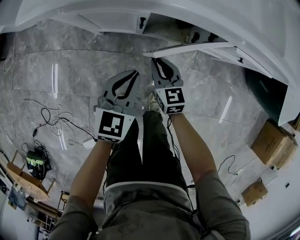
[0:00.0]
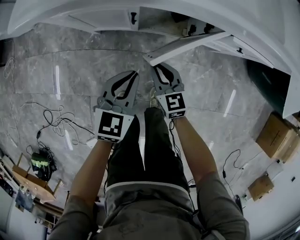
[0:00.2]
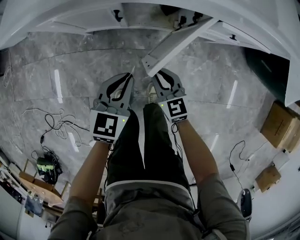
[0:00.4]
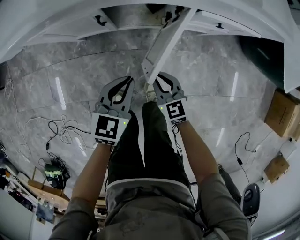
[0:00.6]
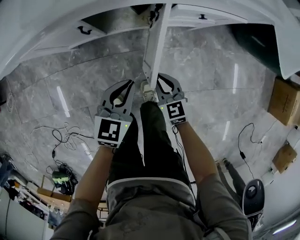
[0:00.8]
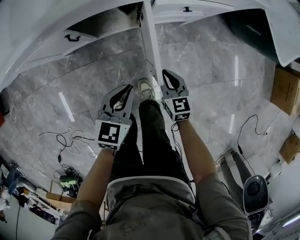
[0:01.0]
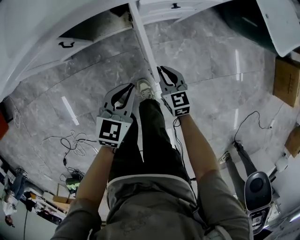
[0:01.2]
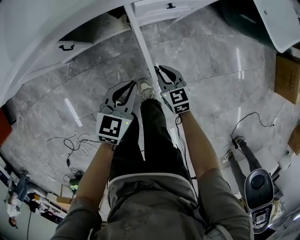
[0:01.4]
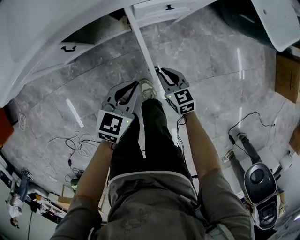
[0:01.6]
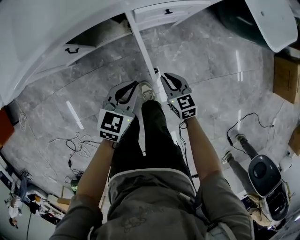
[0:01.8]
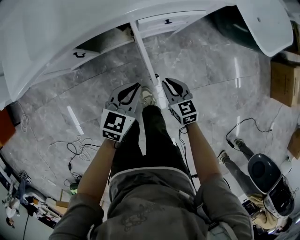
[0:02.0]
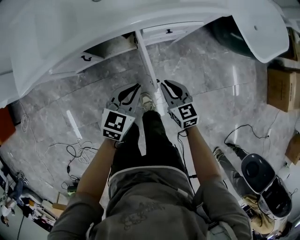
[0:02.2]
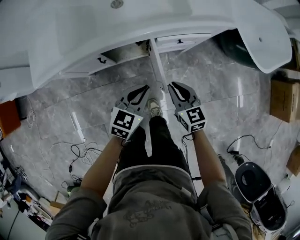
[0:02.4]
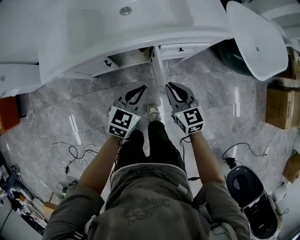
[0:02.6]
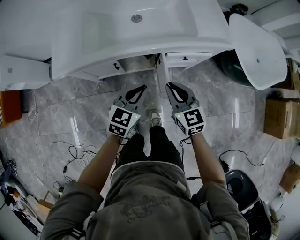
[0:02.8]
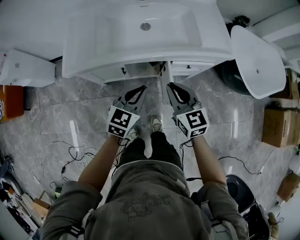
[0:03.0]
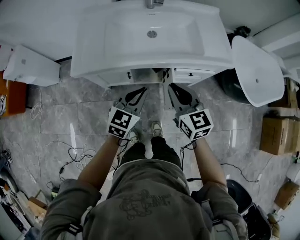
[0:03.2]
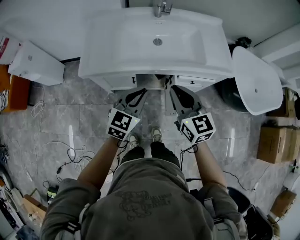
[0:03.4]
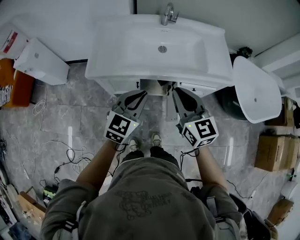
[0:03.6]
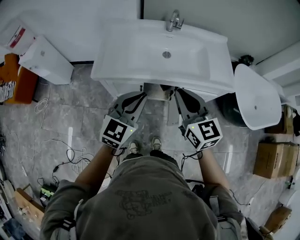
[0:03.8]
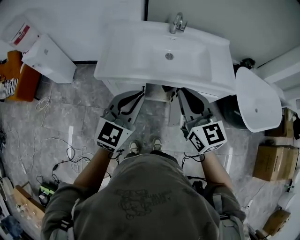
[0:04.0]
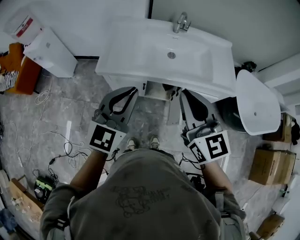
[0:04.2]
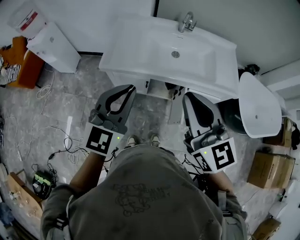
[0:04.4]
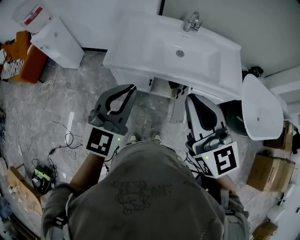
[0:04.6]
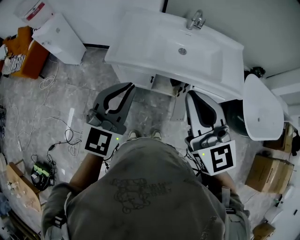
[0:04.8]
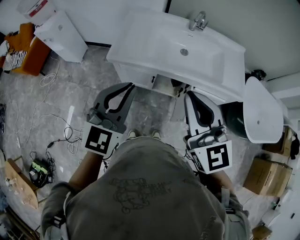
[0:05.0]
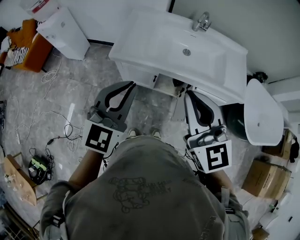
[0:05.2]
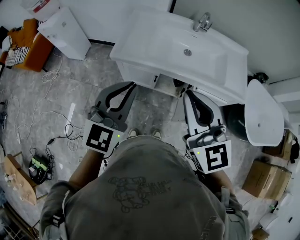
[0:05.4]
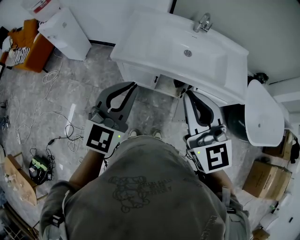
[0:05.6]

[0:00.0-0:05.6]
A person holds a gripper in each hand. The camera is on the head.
0:00.0 to 0:01.4: Both grippers travel together to the right, roughly 25 cm. The left gripper rotates about 30 degrees.
0:01.4 to 0:02.8: The right gripper moves upward, about 35 cm. The left gripper moves upward, some 20 cm.
0:02.8 to 0:04.2: The right gripper shifts some 30 cm upward, and turns by some 20 degrees; the left gripper goes approximately 35 cm upward and to the left, and rotates about 30 degrees.
0:04.2 to 0:05.6: The left gripper ends up about 5 cm from where it was. The right gripper heads to the left, covering roughly 5 cm.

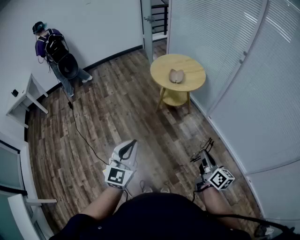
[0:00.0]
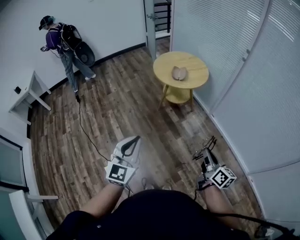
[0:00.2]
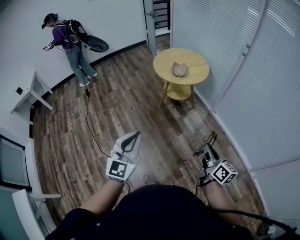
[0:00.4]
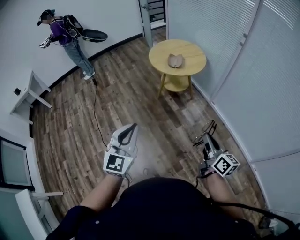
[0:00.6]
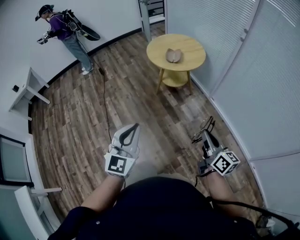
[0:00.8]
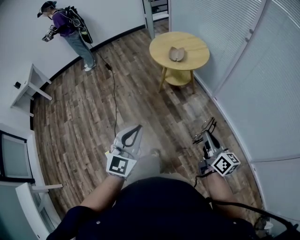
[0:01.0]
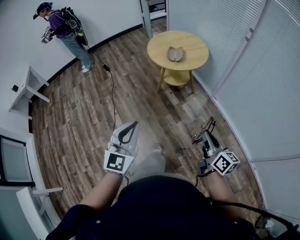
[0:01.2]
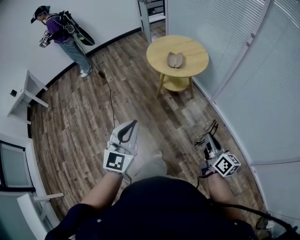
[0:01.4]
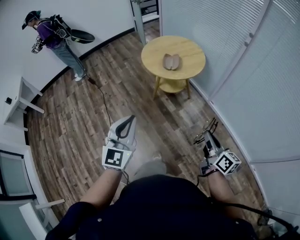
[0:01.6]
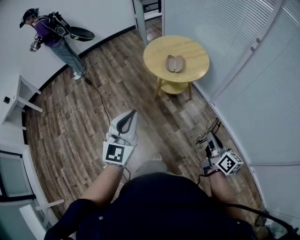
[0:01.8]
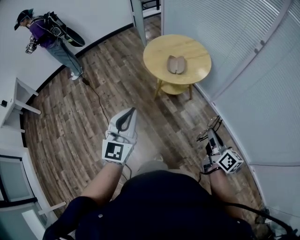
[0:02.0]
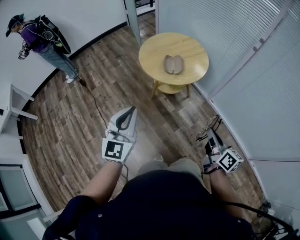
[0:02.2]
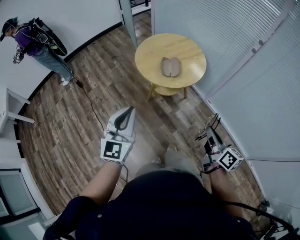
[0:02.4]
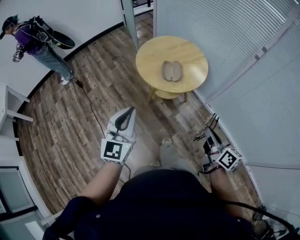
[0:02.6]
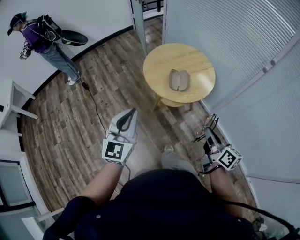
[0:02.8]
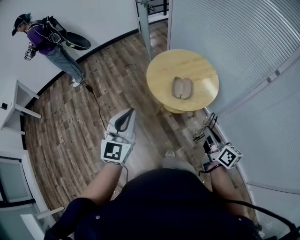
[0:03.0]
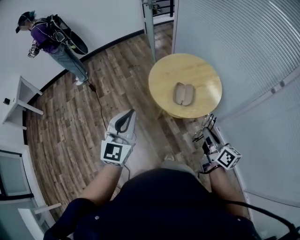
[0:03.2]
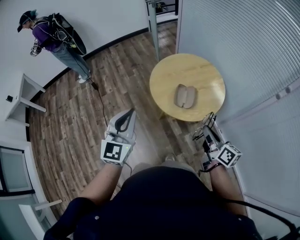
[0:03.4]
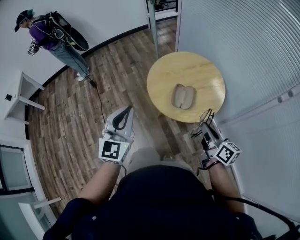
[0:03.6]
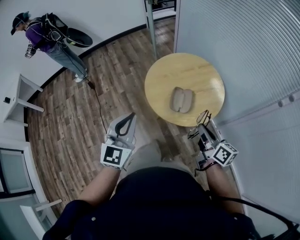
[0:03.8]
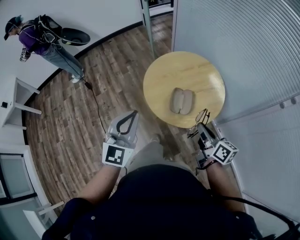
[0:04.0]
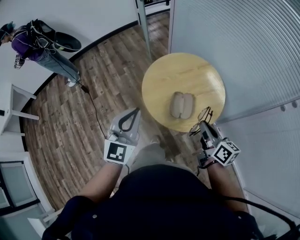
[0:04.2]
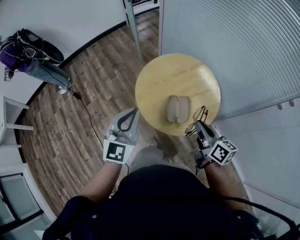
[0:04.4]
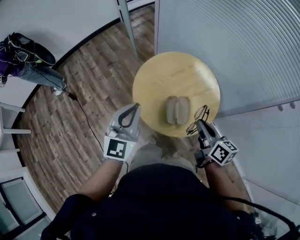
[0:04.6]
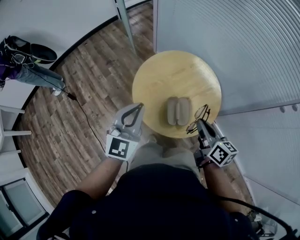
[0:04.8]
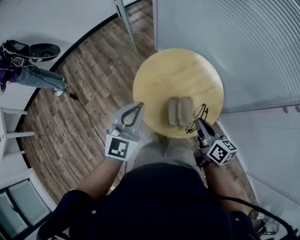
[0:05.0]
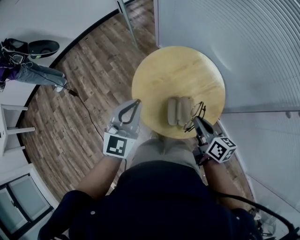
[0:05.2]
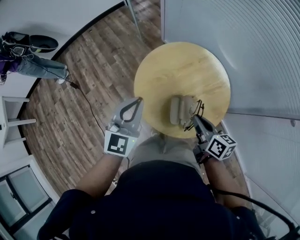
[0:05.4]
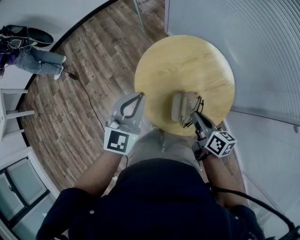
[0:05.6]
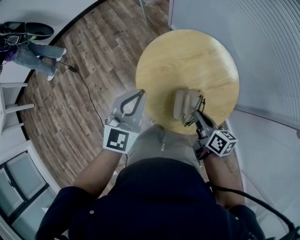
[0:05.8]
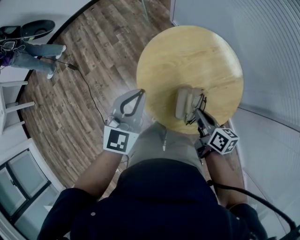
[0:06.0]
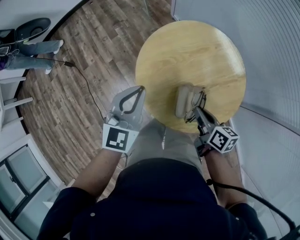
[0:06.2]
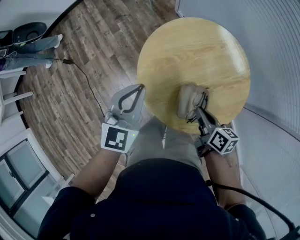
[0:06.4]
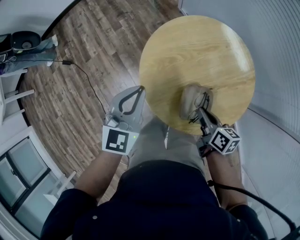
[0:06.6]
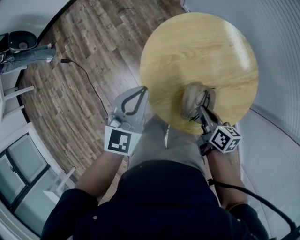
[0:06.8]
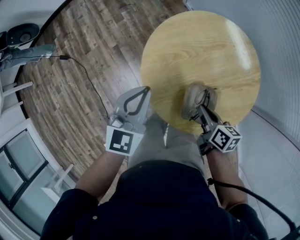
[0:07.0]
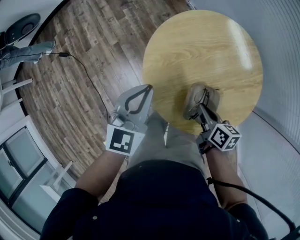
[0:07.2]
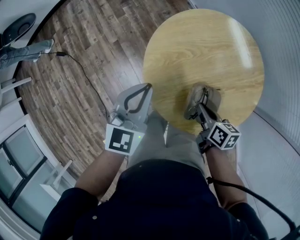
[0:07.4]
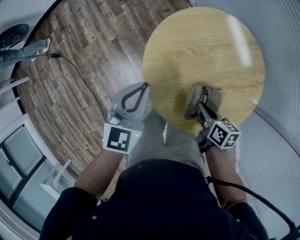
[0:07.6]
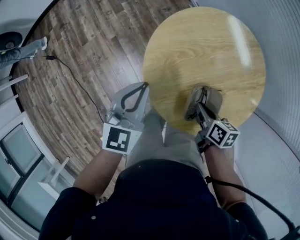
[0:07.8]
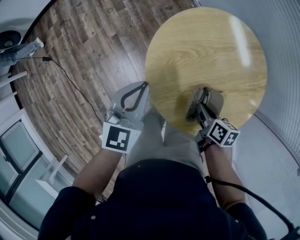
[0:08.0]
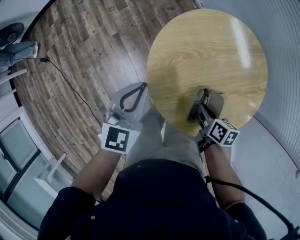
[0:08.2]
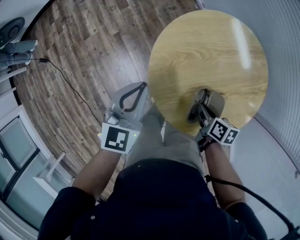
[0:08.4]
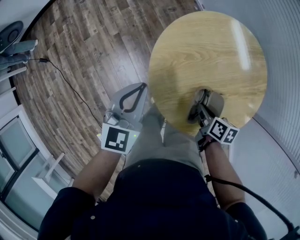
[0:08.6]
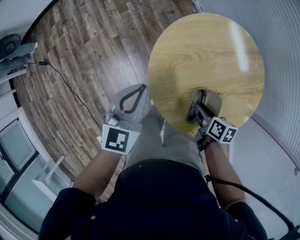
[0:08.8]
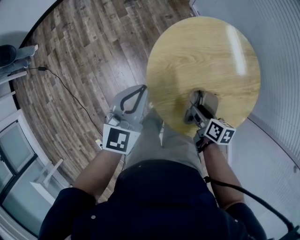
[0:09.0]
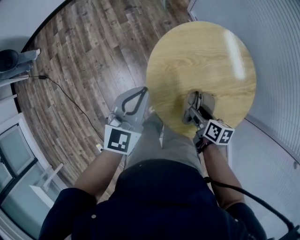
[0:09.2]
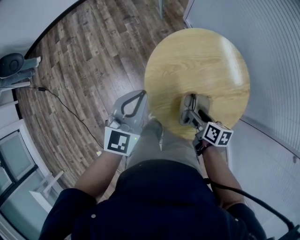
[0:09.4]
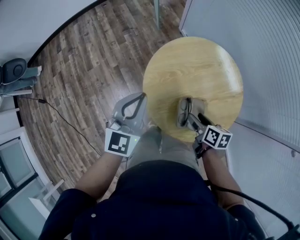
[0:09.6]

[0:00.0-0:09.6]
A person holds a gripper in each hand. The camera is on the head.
0:00.0 to 0:01.6: The grippers both shift forward by about 15 cm.
0:01.6 to 0:03.2: The two grippers go roughly 35 cm forward.
0:03.2 to 0:04.8: Both grippers travel together forward, roughly 25 cm.
0:04.8 to 0:06.4: The two grippers go some 20 cm downward and forward. The right gripper swivels approximately 20 degrees.
0:06.4 to 0:08.0: Both grippers travel together downward, roughly 10 cm.
0:08.0 to 0:09.6: Both grippers travel together upward, about 10 cm. The right gripper opens up.

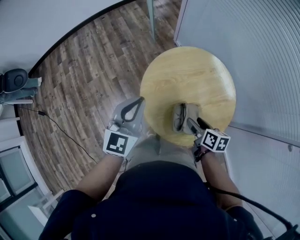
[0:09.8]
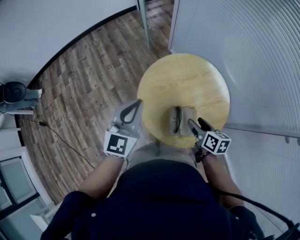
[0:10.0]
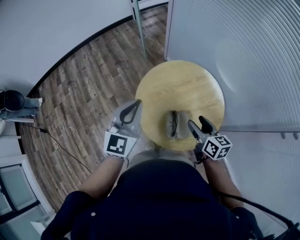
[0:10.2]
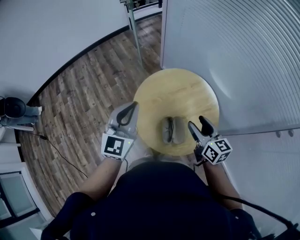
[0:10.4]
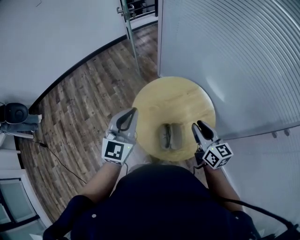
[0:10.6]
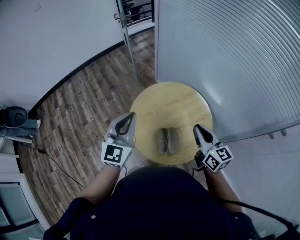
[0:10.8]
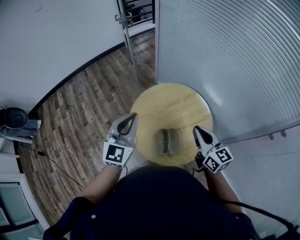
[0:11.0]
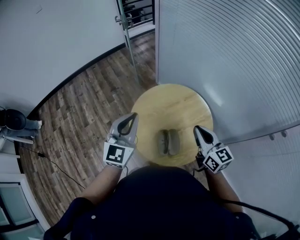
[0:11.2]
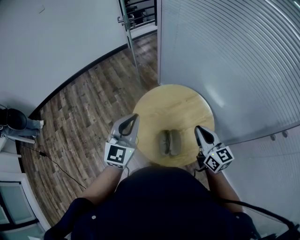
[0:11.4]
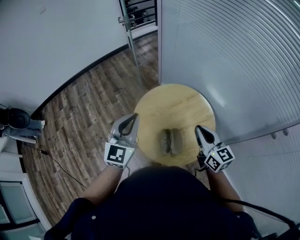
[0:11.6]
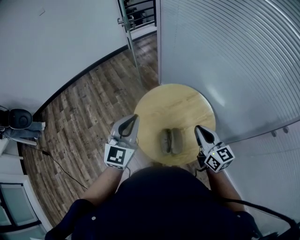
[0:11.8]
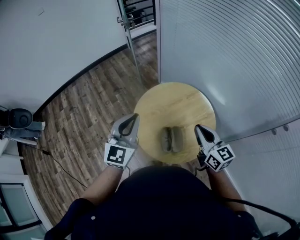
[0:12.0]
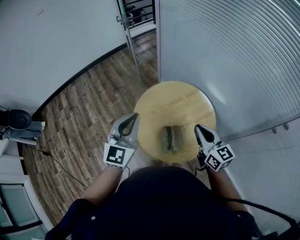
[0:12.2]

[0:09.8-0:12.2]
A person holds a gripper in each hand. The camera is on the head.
0:09.8 to 0:11.0: The right gripper moves upward, roughly 25 cm, angles its fingers upward, by approximately 30 degrees, and closes up; the left gripper moves upward and to the right, some 10 cm.
0:11.0 to 0:12.2: The grippers move only a little.

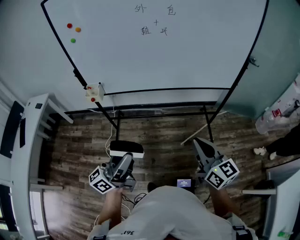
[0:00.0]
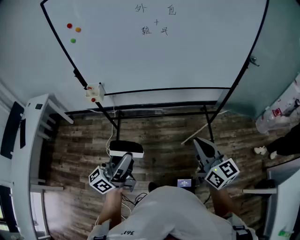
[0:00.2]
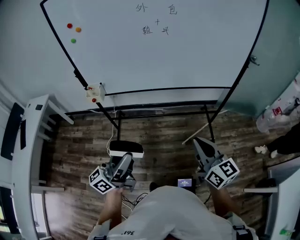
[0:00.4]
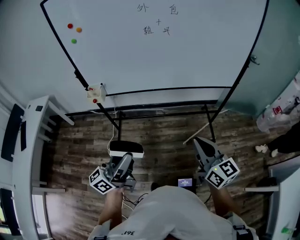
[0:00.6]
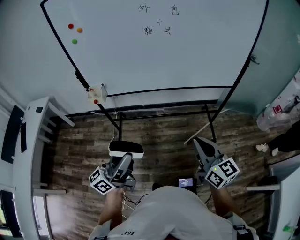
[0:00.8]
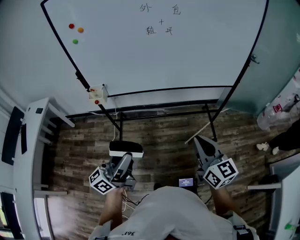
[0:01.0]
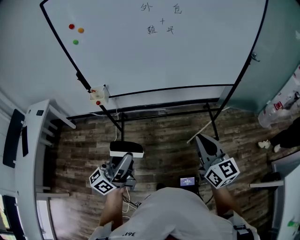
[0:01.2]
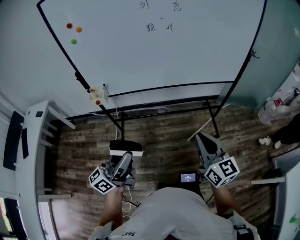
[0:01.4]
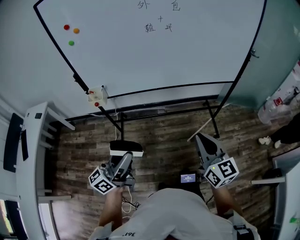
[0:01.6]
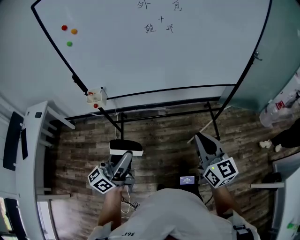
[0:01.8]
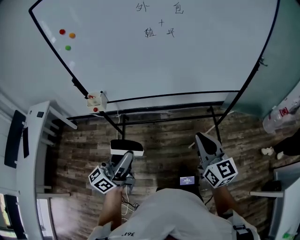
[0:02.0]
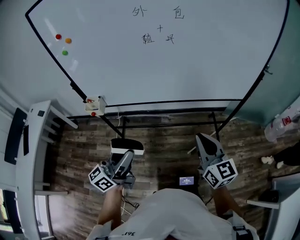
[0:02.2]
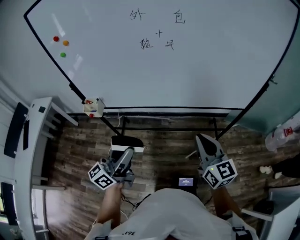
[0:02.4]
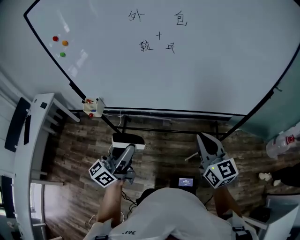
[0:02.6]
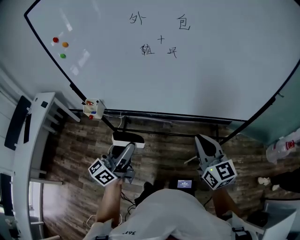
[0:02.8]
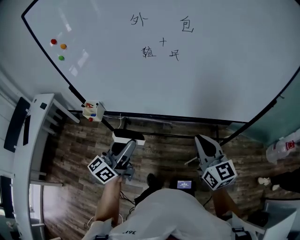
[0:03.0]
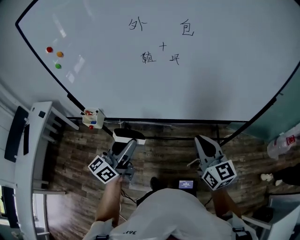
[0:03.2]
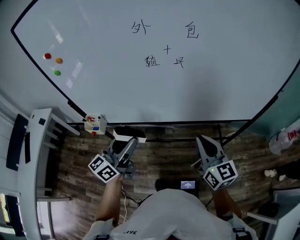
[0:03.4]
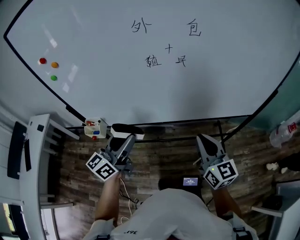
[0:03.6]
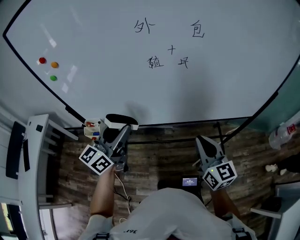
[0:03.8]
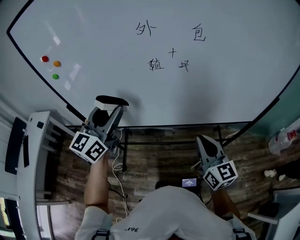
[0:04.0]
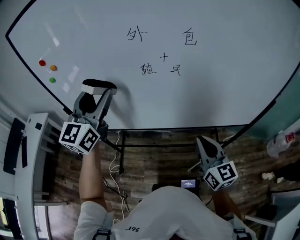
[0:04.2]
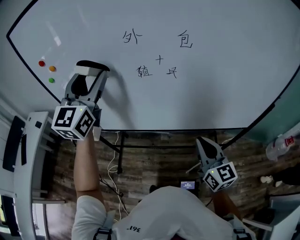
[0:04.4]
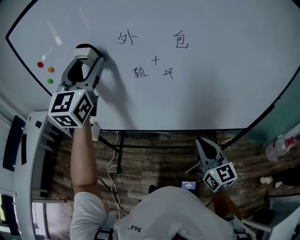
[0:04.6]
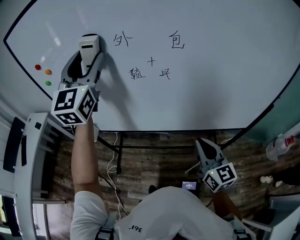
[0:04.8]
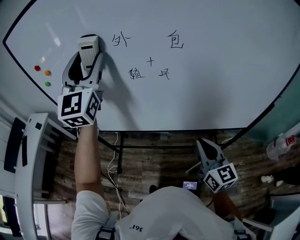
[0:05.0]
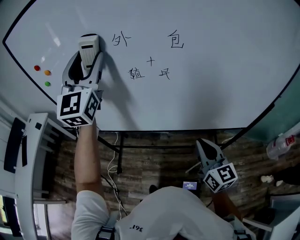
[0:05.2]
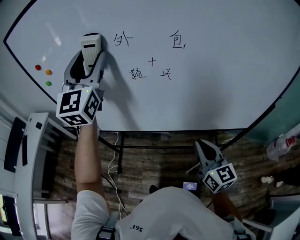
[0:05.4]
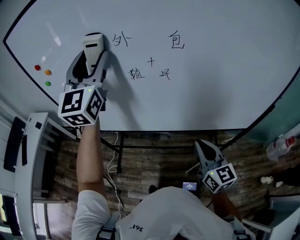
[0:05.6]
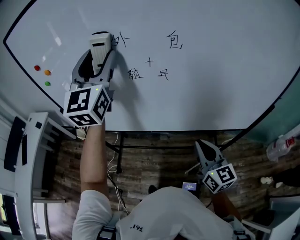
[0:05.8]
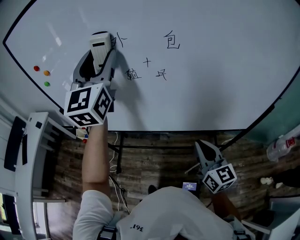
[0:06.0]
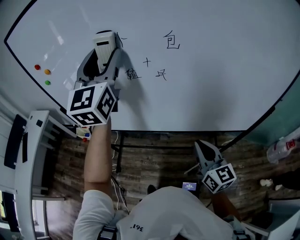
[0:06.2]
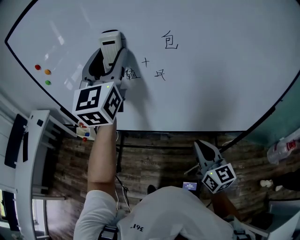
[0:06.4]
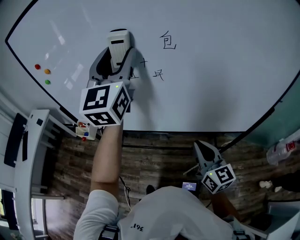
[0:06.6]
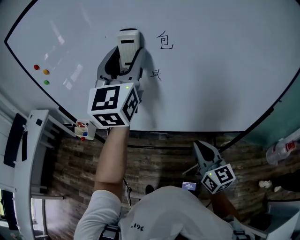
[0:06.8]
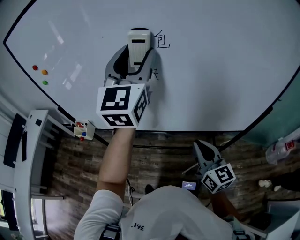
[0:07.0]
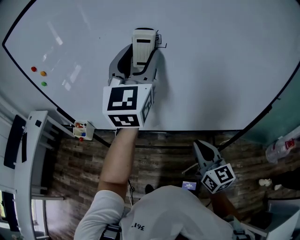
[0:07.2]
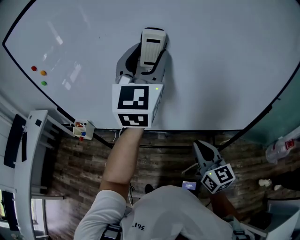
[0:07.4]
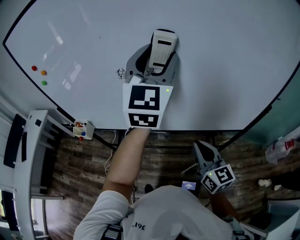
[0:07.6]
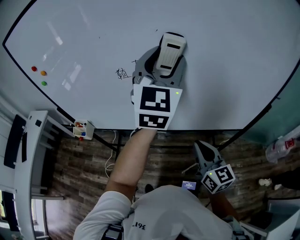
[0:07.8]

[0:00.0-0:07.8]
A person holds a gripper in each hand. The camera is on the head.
0:00.0 to 0:01.6: The two grippers go roughly 5 cm to the left.
0:01.6 to 0:03.2: The grippers both shift forward by about 25 cm.
0:03.2 to 0:04.6: The right gripper ends up roughly 5 cm from where it was. Meanwhile the left gripper heads upward and forward, covering about 35 cm, and rolls clockwise, seen from behind, by roughly 50 degrees.
0:04.6 to 0:06.2: The left gripper goes some 10 cm to the right.
0:06.2 to 0:07.8: The left gripper shifts about 20 cm to the right.
